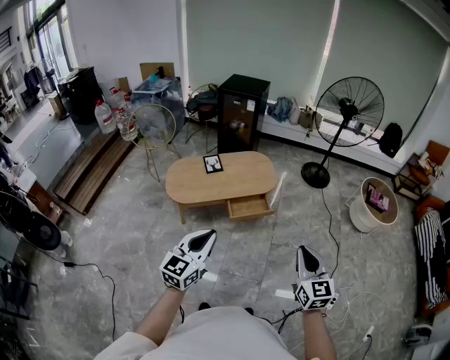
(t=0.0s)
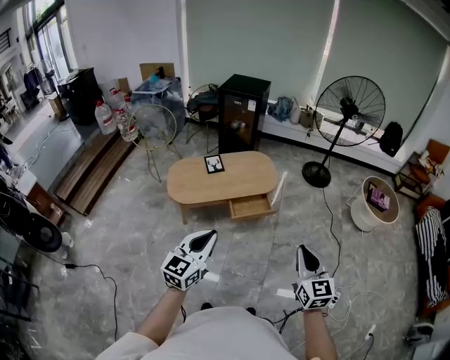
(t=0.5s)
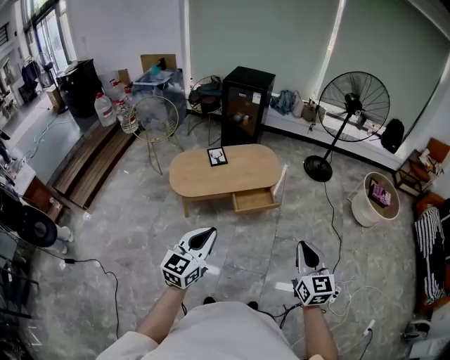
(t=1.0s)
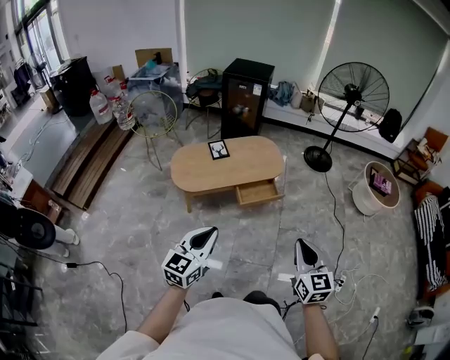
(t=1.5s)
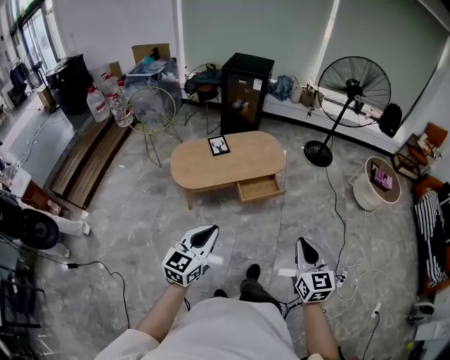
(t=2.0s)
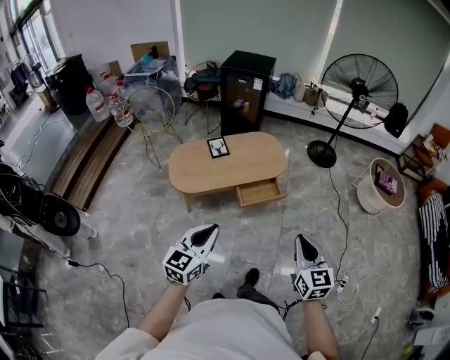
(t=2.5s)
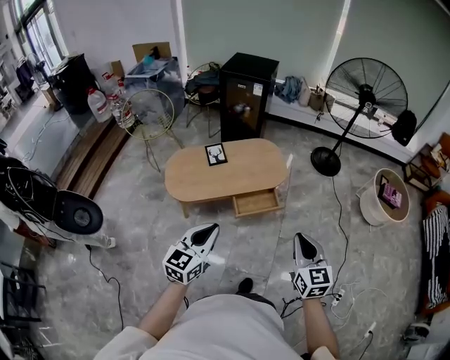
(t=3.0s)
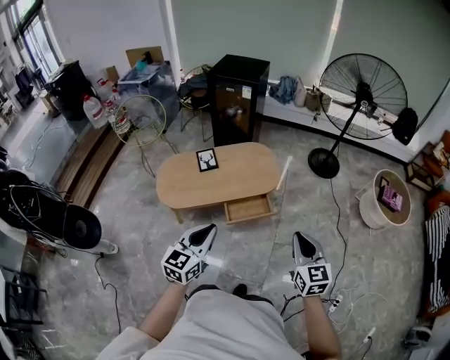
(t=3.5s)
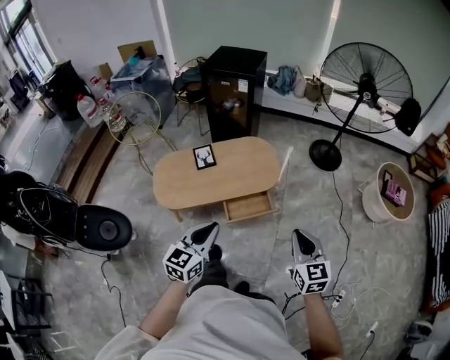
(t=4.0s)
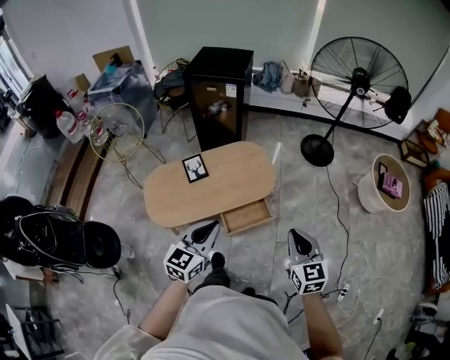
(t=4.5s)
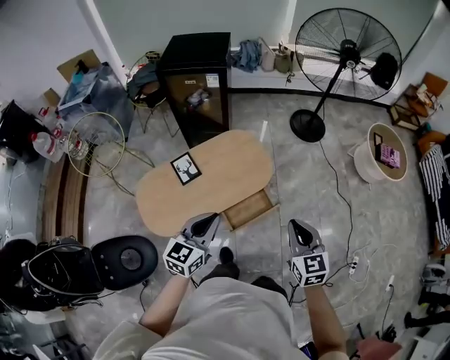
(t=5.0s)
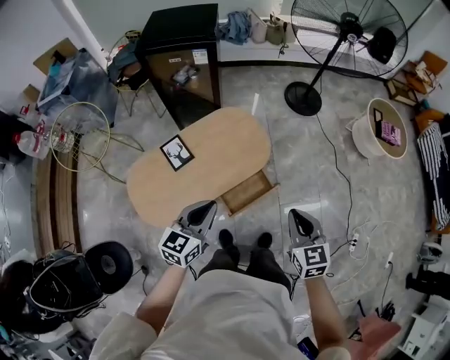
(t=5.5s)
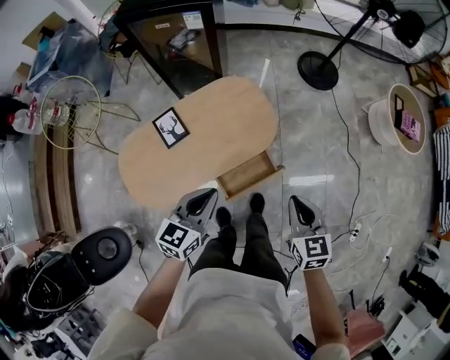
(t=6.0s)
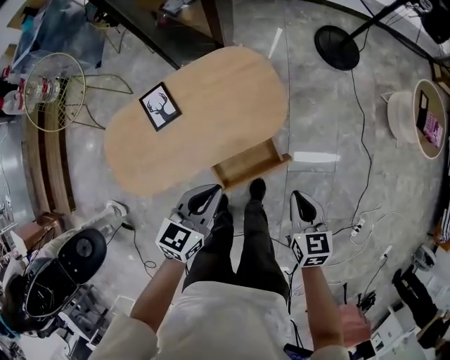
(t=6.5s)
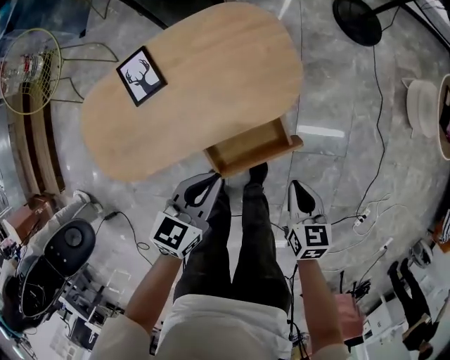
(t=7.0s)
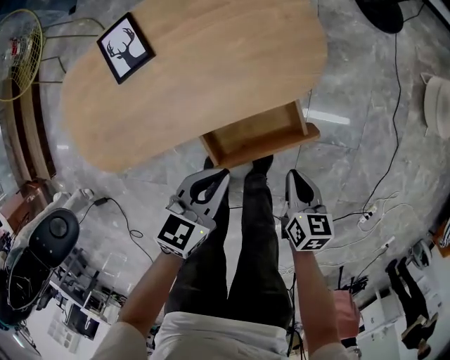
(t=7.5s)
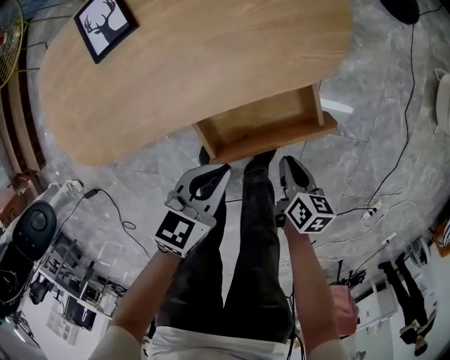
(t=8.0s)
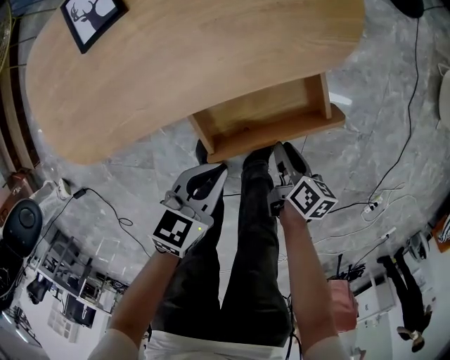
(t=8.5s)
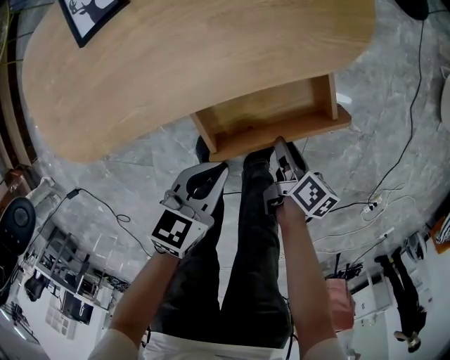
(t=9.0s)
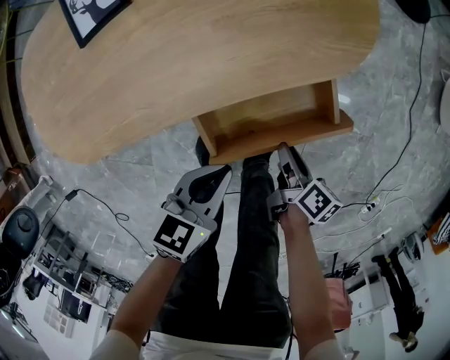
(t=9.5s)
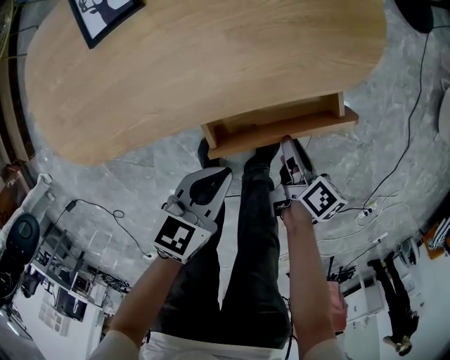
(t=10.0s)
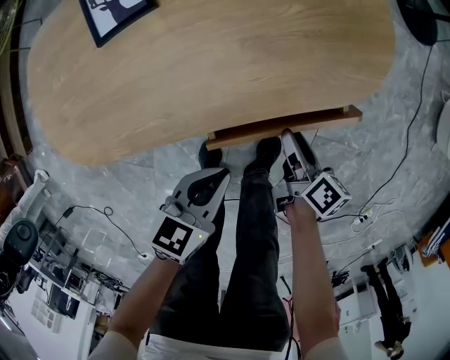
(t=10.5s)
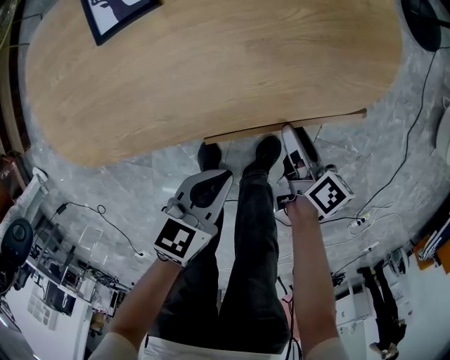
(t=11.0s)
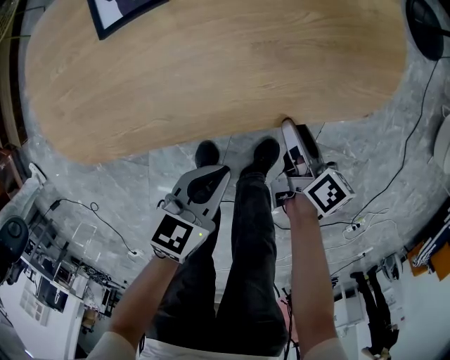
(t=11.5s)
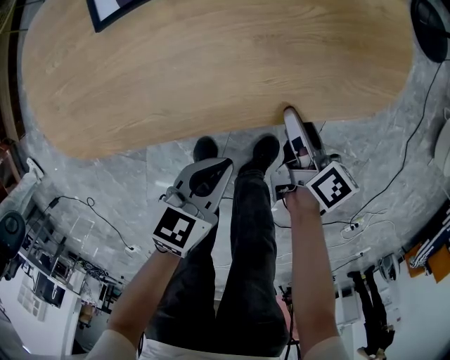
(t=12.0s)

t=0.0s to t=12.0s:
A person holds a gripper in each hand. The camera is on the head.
t=0.0s to t=2.0s: Both grippers travel together to the left, about 10 cm.
t=2.0s to t=4.0s: The left gripper travels forward and to the right by approximately 30 cm; the right gripper is displaced forward by approximately 30 cm.
t=4.0s to t=6.0s: The left gripper moves forward and downward, approximately 35 cm, and rotates approximately 20 degrees, while the right gripper moves forward, downward and to the left, some 30 cm, and rotates approximately 20 degrees.
t=6.0s to t=8.0s: The grippers both shift downward by about 50 cm. The left gripper swivels some 20 degrees; the right gripper swivels roughly 40 degrees.
t=8.0s to t=10.0s: The left gripper ends up about 5 cm from where it was. Meanwhile the right gripper heads forward and to the left, covering roughly 10 cm, and turns by approximately 20 degrees.
t=10.0s to t=12.0s: The left gripper shifts by some 5 cm. The right gripper moves forward and to the left, some 15 cm, and opens.

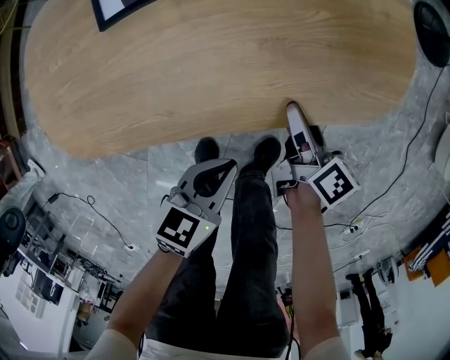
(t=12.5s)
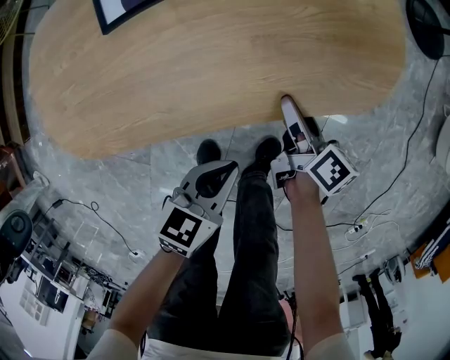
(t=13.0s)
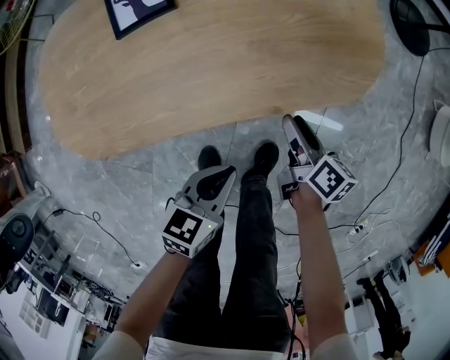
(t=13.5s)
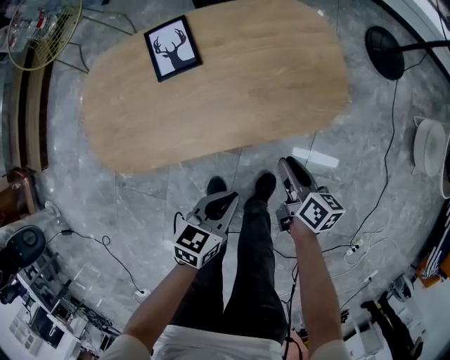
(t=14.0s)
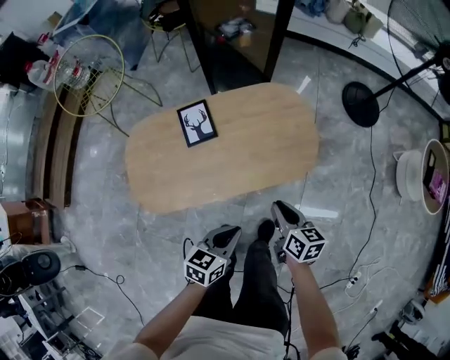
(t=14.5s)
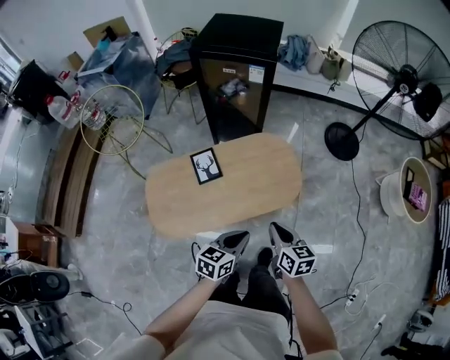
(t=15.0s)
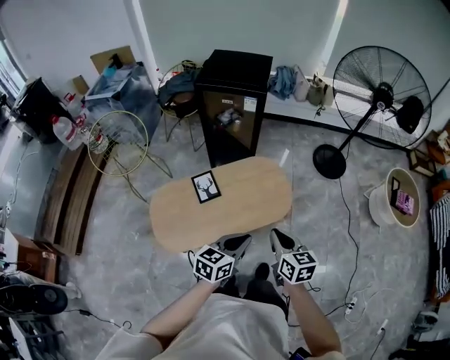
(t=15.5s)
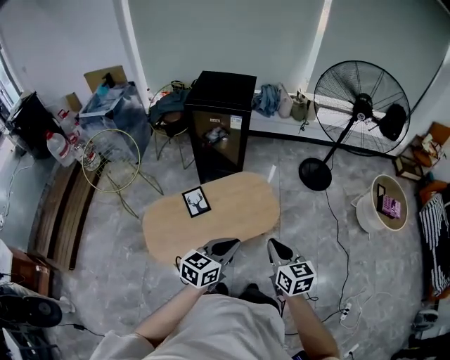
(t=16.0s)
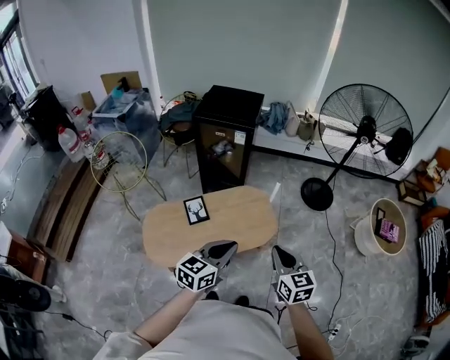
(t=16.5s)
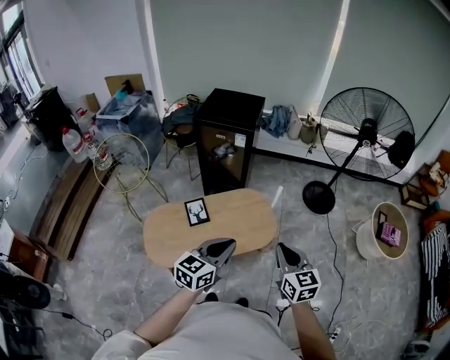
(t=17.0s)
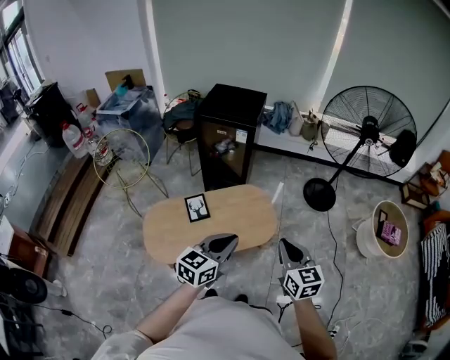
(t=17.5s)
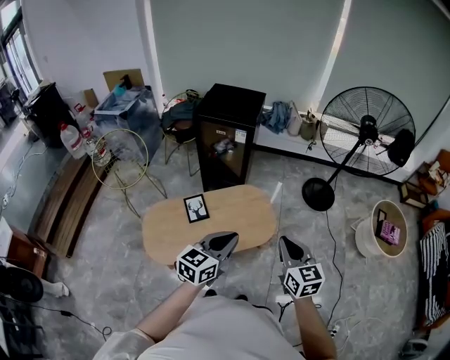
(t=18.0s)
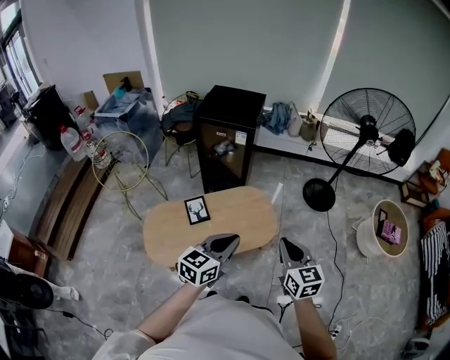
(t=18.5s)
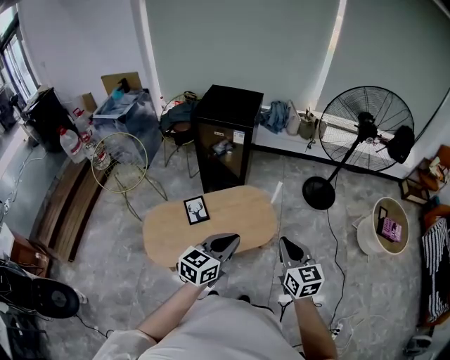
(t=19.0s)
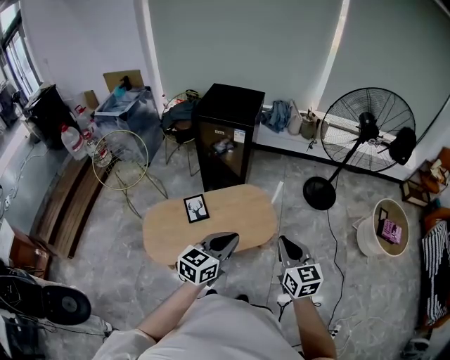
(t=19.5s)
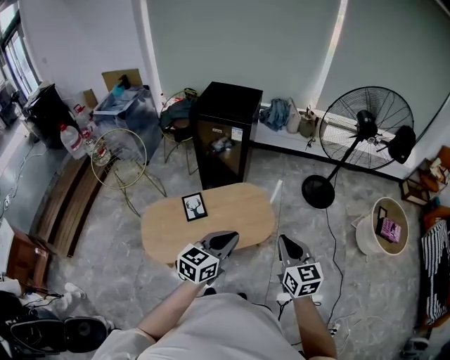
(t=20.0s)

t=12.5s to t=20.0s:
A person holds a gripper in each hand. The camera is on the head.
t=12.5s to t=14.5s: Both grippers move upward, about 30 cm. The right gripper changes its angle by roughly 30 degrees, and closes.
t=14.5s to t=16.5s: The two grippers go about 40 cm upward. The left gripper swivels roughly 30 degrees. The right gripper changes its angle by roughly 30 degrees.
t=16.5s to t=20.0s: The grippers move only a little.

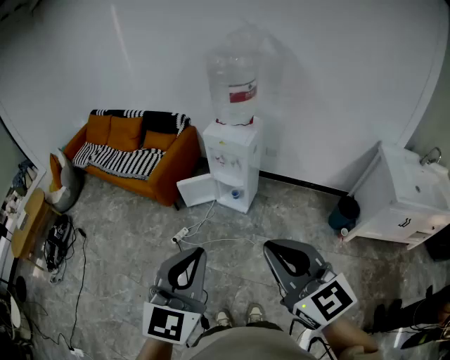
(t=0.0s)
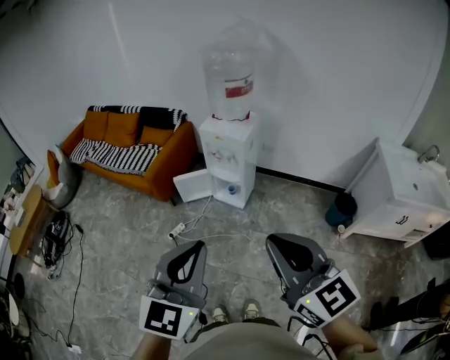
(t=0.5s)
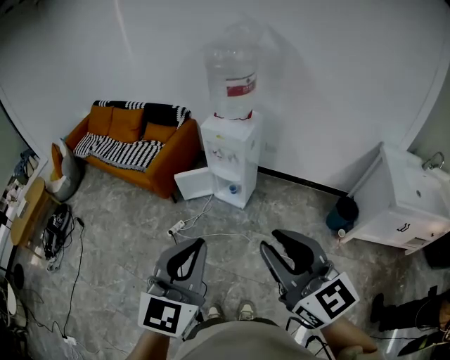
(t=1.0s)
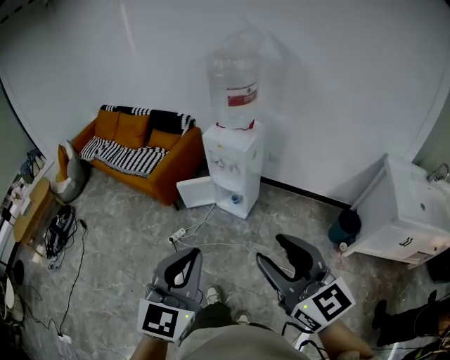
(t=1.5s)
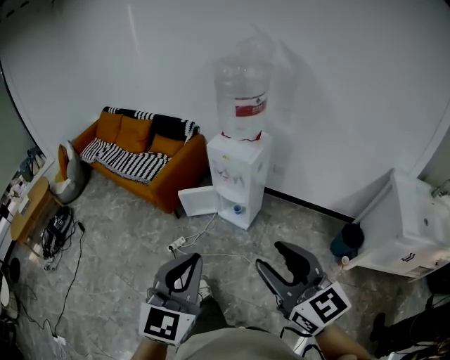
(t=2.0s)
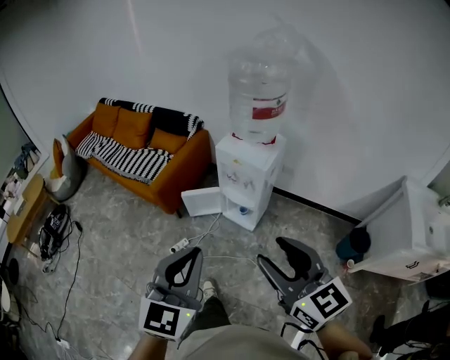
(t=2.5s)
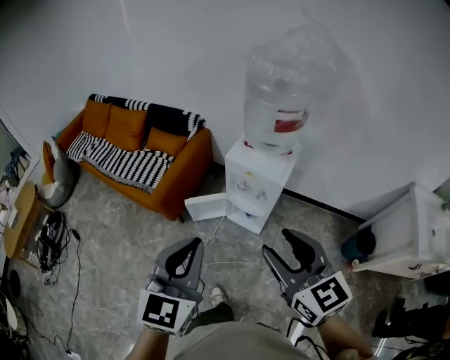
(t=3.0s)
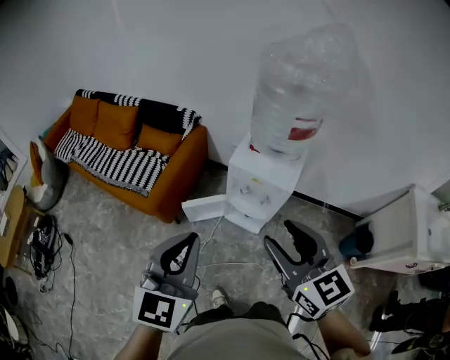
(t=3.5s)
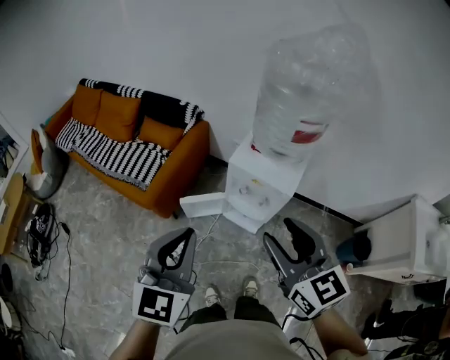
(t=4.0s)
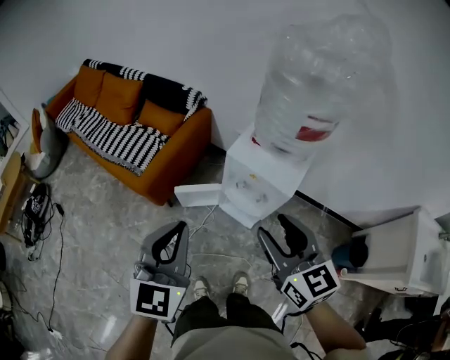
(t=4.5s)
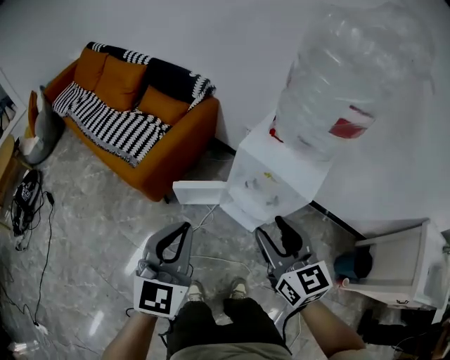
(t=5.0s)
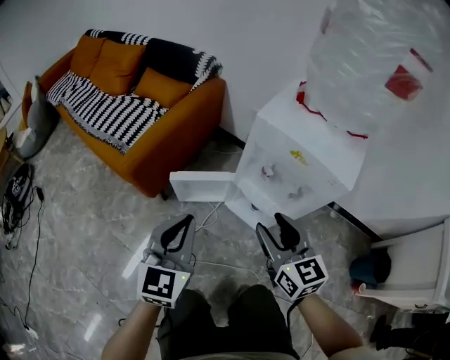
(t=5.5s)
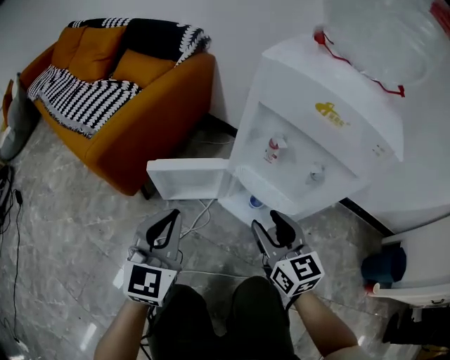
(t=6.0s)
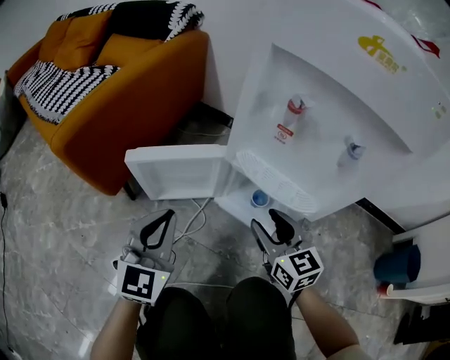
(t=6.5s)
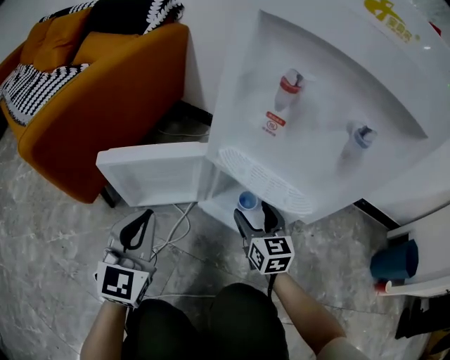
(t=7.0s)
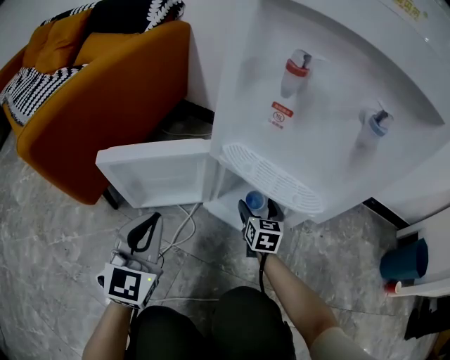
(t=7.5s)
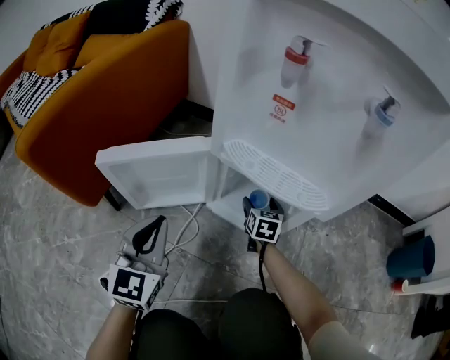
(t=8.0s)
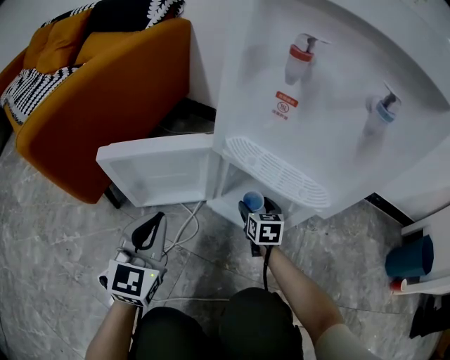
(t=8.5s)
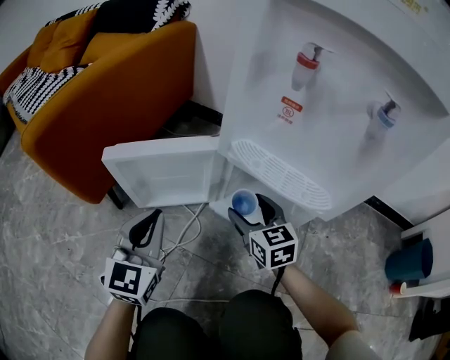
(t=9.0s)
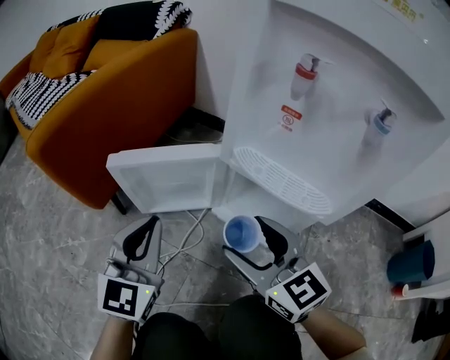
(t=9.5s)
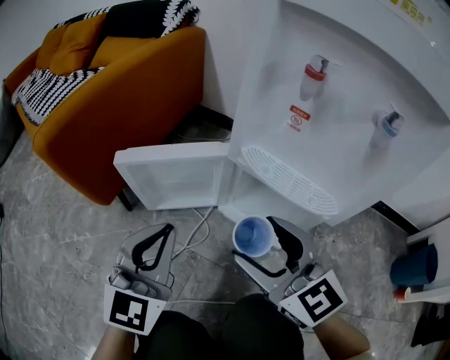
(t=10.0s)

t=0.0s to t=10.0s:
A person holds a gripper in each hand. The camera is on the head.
t=0.0s to t=2.0s: Both grippers move forward and to the right, about 10 cm. The right gripper opens its fingers.
t=2.0s to t=4.0s: The pair of grippers is taken forward, roughly 40 cm.
t=4.0s to t=6.0s: The two grippers go about 60 cm downward.
t=6.0s to t=8.0s: The right gripper moves downward and forward, approximately 50 cm, swivels some 40 degrees, and opens up. Meanwhile the left gripper shifts approximately 25 cm downward.
t=8.0s to t=10.0s: The right gripper travels upward, backward and to the left by about 40 cm, and turns by approximately 50 degrees, while the left gripper goes approximately 10 cm upward.
